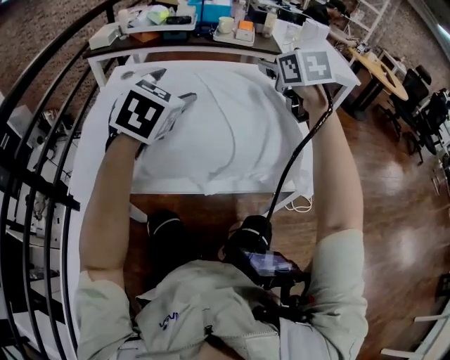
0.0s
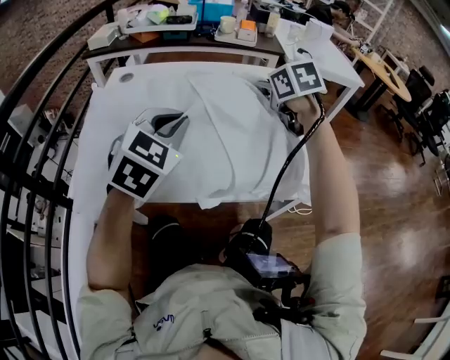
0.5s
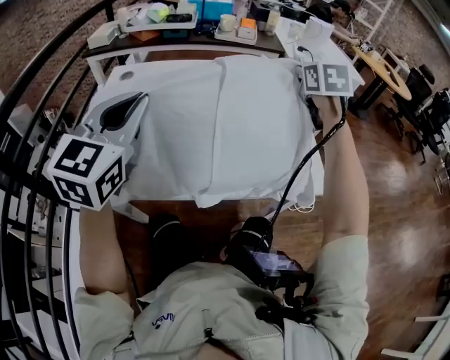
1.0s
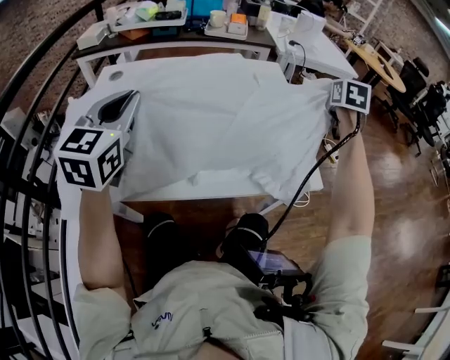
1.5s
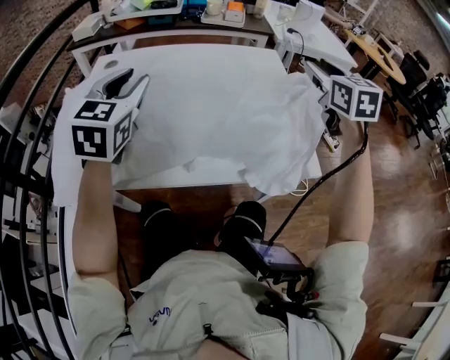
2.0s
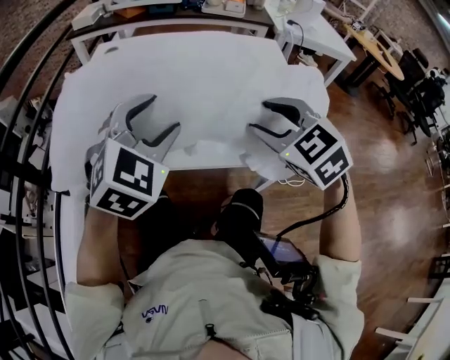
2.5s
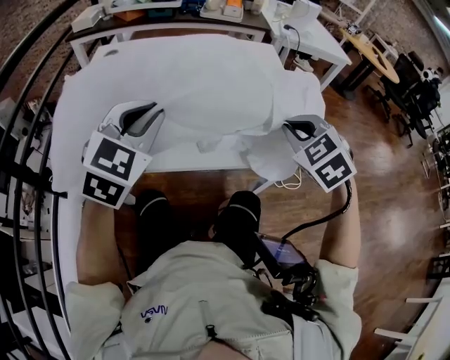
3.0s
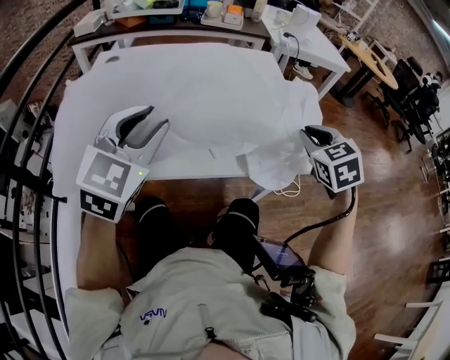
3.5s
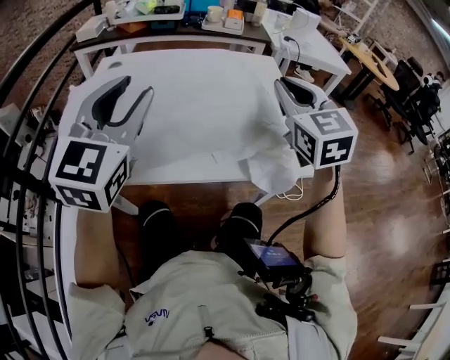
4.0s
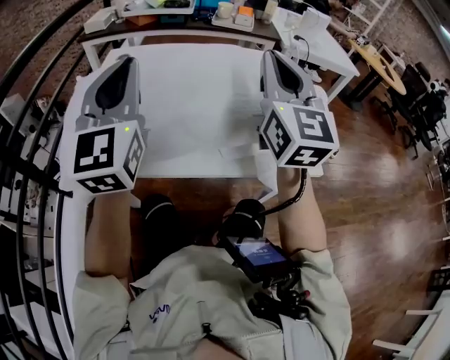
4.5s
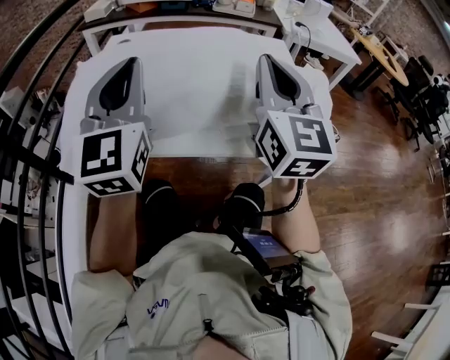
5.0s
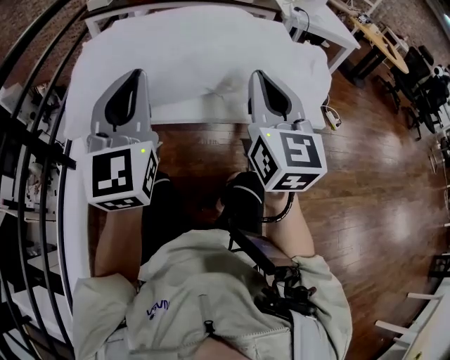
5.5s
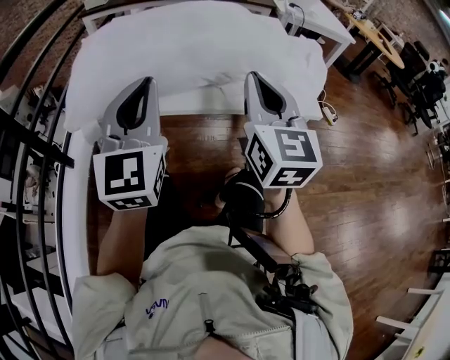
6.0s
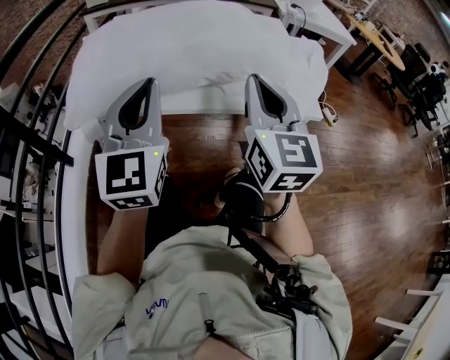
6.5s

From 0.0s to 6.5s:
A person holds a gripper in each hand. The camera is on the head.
From 0.0s to 2.0s: The right gripper shifts some 15 cm to the right, and closes, then opens again. The left gripper heads to the left, covering some 5 cm, and closes its fingers.
From 2.0s to 4.5s: The right gripper is displaced to the left and backward by some 20 cm, travels downward and back again, some 15 cm each way, changes its angle by some 30 degrees, and closes its fingers, while the left gripper is displaced backward and upward by some 10 cm, and changes its angle by approximately 30 degrees.
From 4.5s to 6.5s: The two grippers go approximately 20 cm backward and downward.

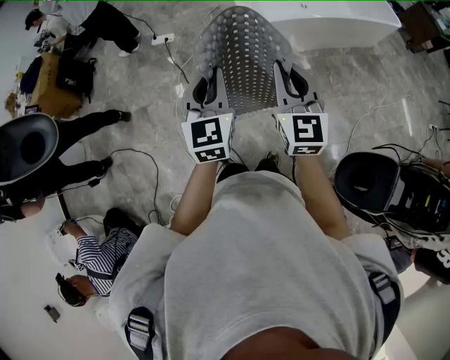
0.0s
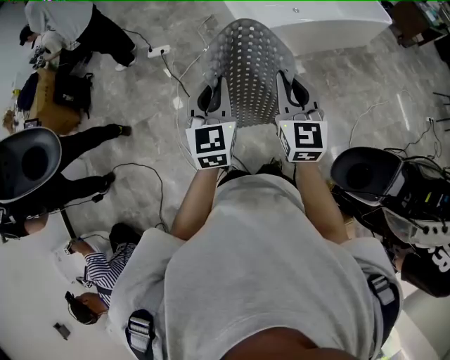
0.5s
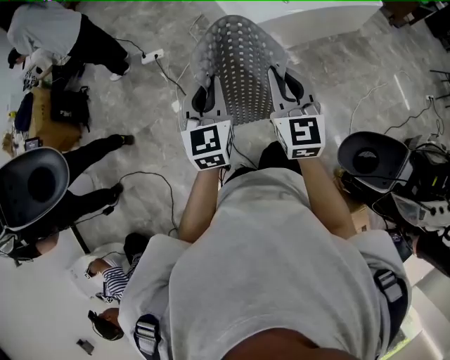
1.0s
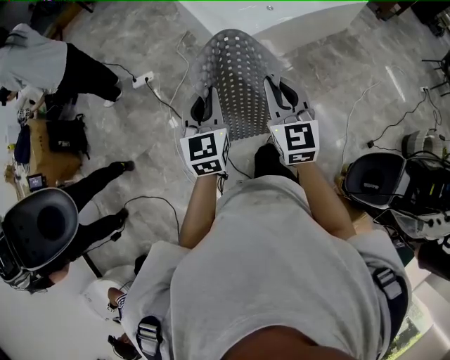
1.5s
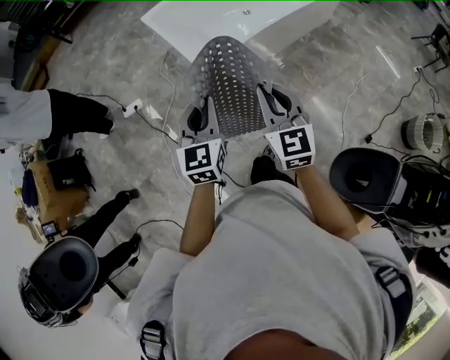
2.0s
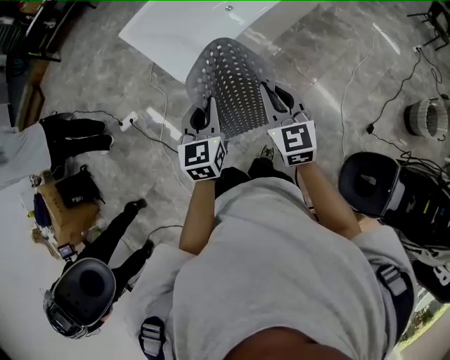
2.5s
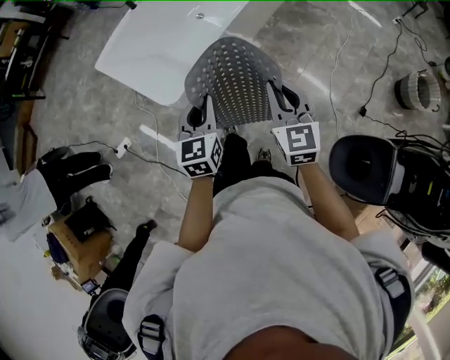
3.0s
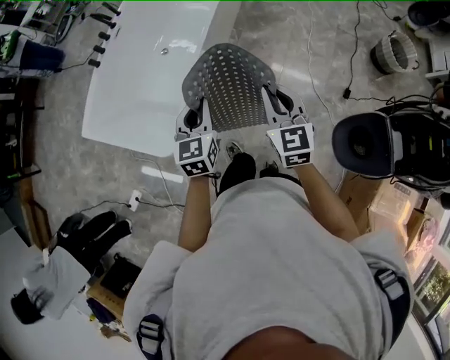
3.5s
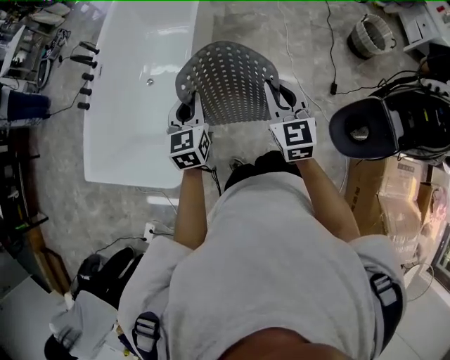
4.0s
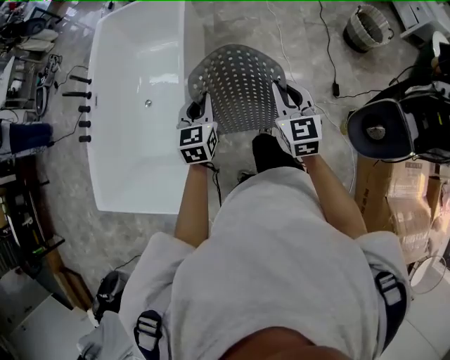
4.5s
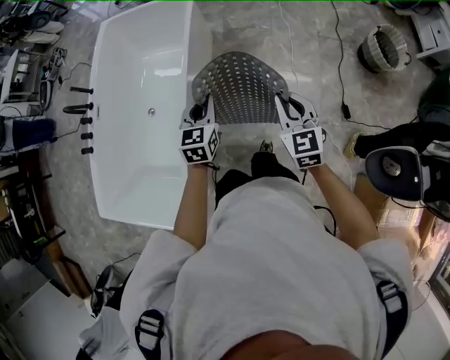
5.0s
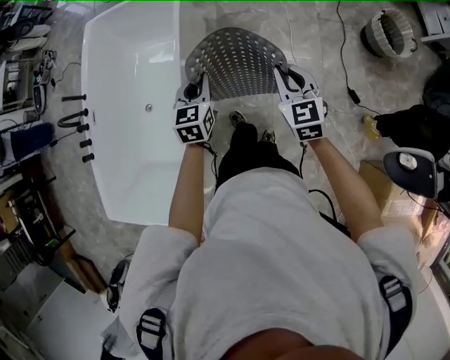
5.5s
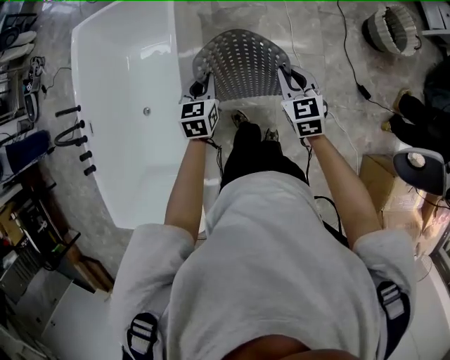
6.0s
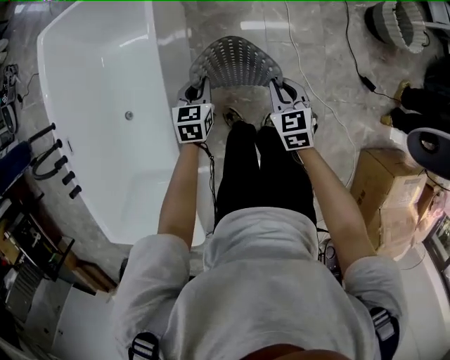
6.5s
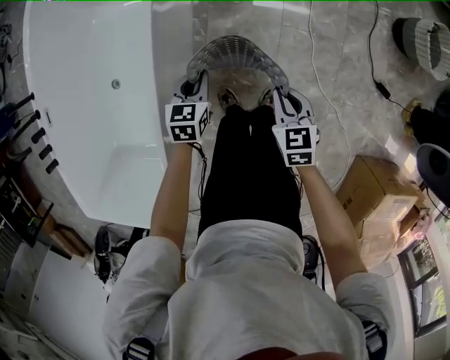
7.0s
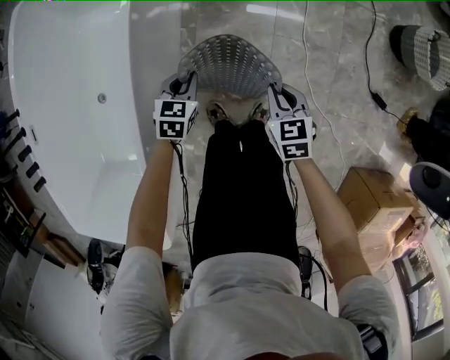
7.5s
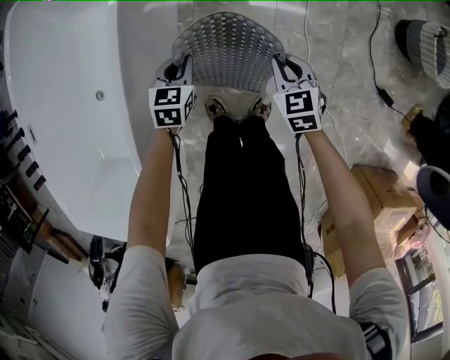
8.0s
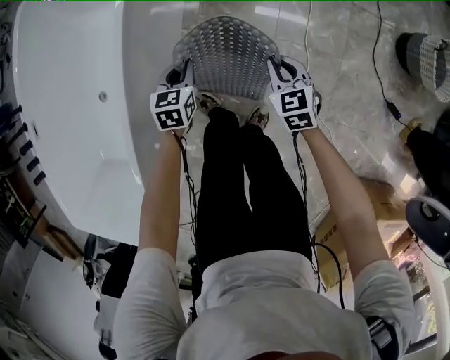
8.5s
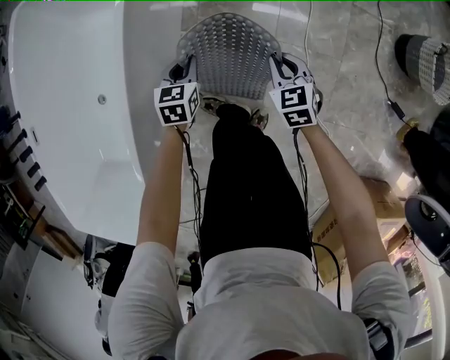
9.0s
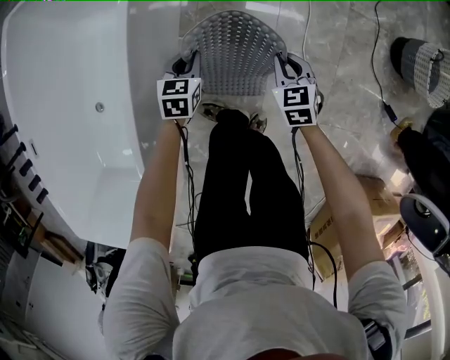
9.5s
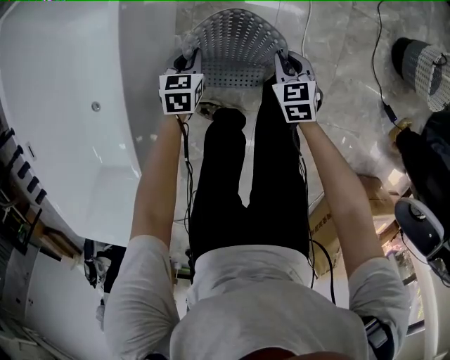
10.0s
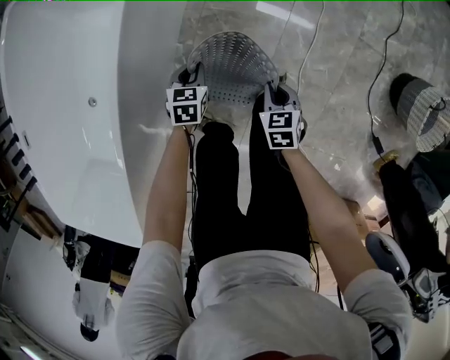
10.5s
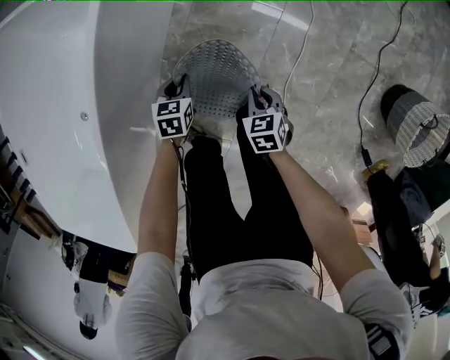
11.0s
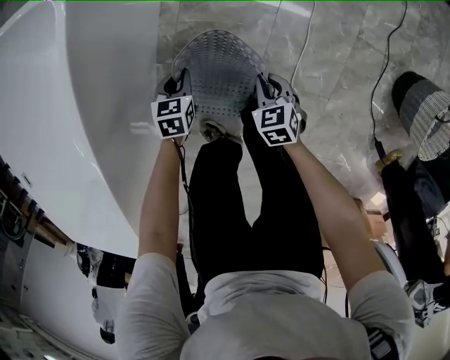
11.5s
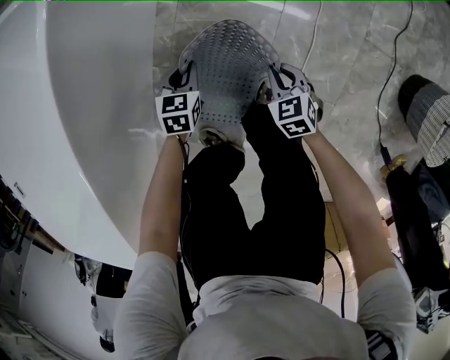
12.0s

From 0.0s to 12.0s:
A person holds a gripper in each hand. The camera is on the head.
From 0.0s to 2.0s: The grippers both shift forward and to the right by about 25 cm. The left gripper rotates roughly 20 degrees.
From 2.0s to 4.0s: The right gripper moves some 40 cm, and changes its angle by about 50 degrees, while the left gripper changes place by approximately 50 cm, and changes its angle by about 50 degrees.
From 4.0s to 6.0s: The two grippers travel together, forward, roughly 40 cm. The left gripper changes its angle by some 20 degrees; the right gripper travels downward by some 15 cm.
From 6.0s to 8.0s: Both grippers move downward, roughly 30 cm.
From 8.0s to 10.0s: The left gripper heads forward and downward, covering about 15 cm; the right gripper heads forward, covering some 15 cm.
From 10.0s to 12.0s: The left gripper travels downward, forward and to the right by roughly 20 cm. The right gripper is displaced downward and forward by some 20 cm.

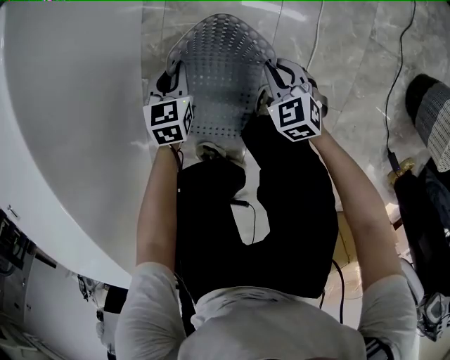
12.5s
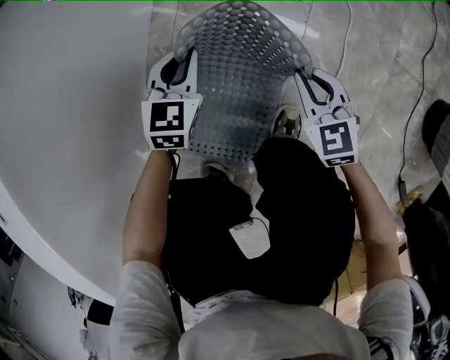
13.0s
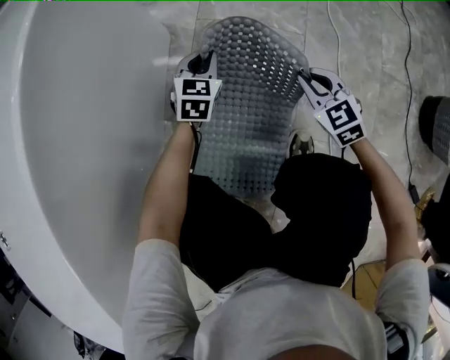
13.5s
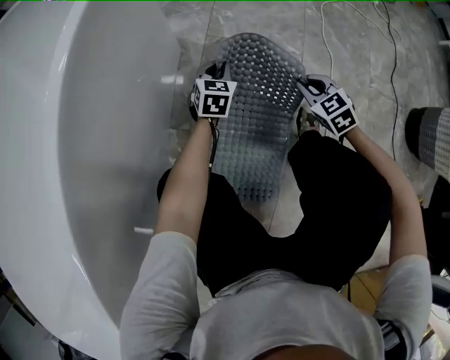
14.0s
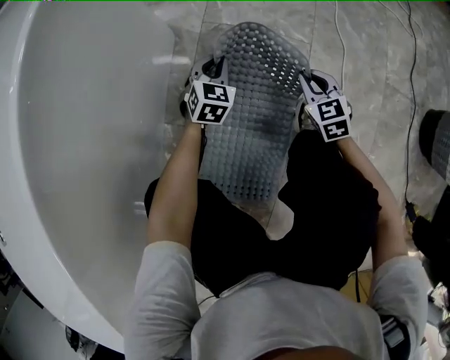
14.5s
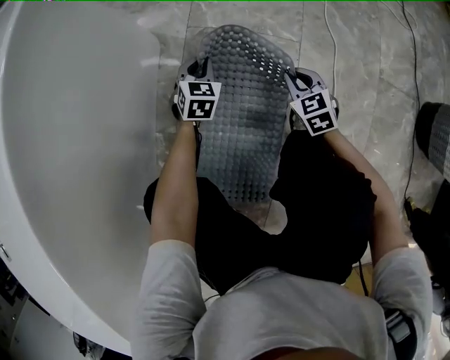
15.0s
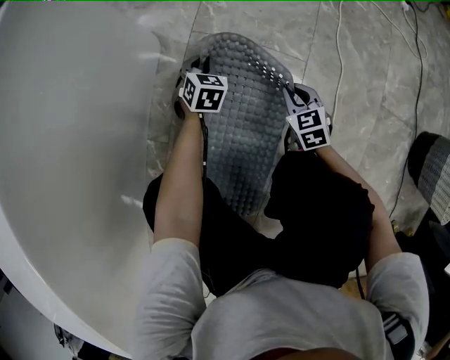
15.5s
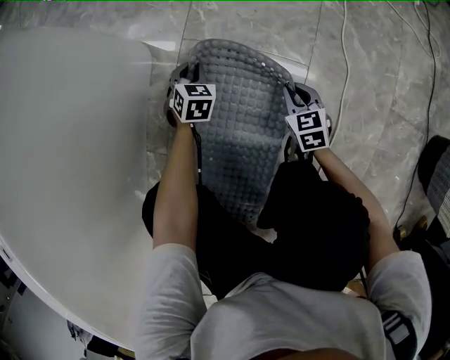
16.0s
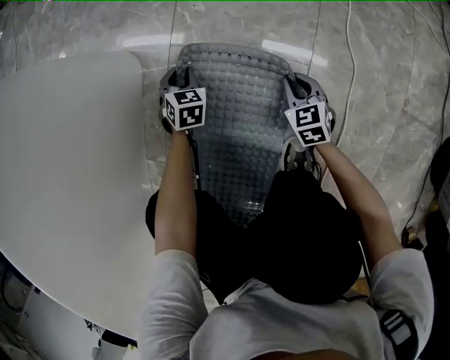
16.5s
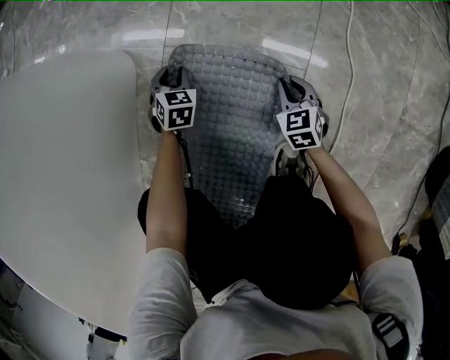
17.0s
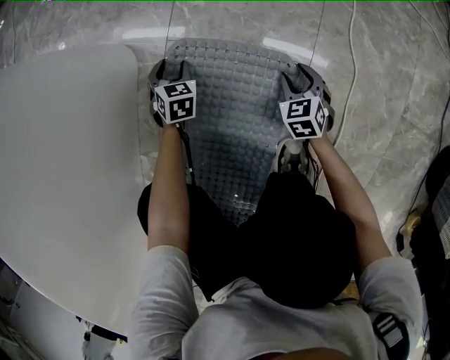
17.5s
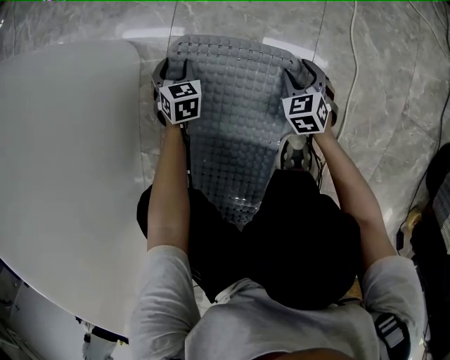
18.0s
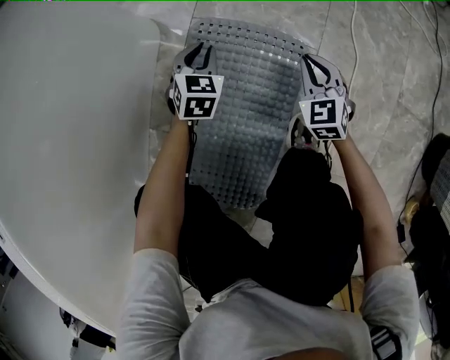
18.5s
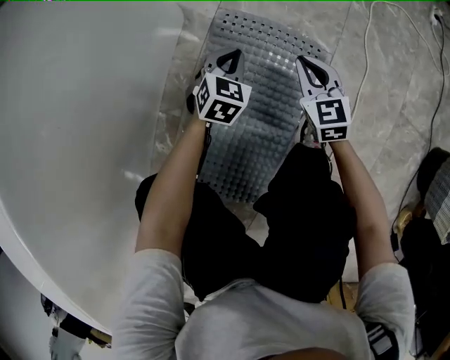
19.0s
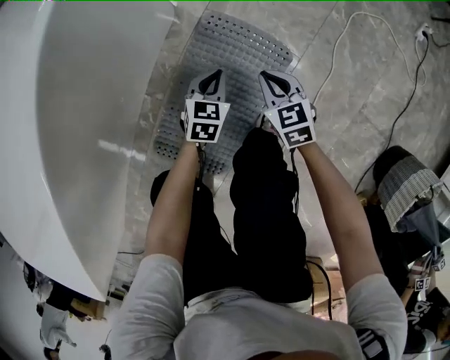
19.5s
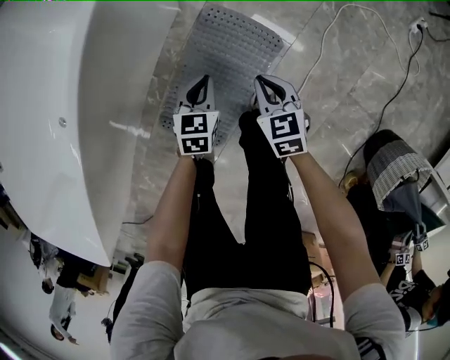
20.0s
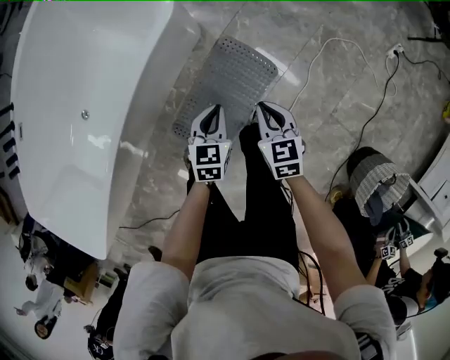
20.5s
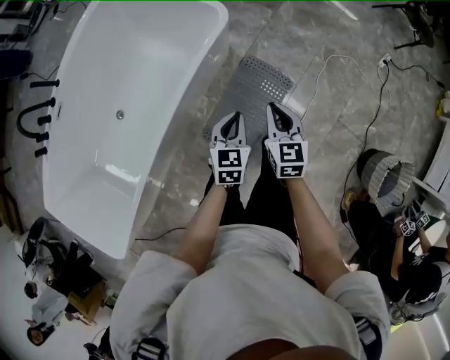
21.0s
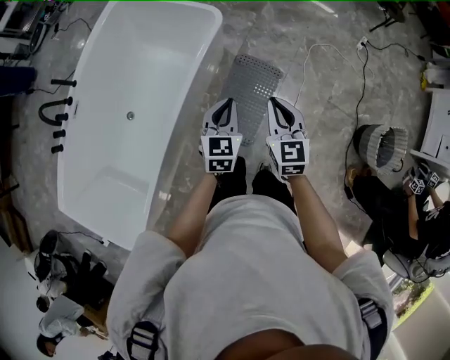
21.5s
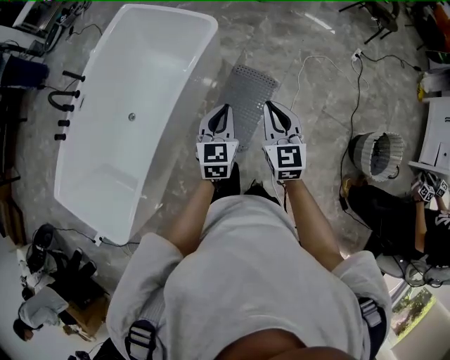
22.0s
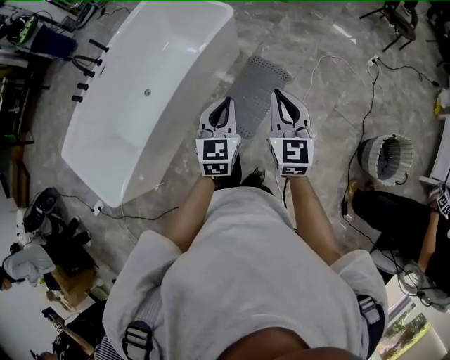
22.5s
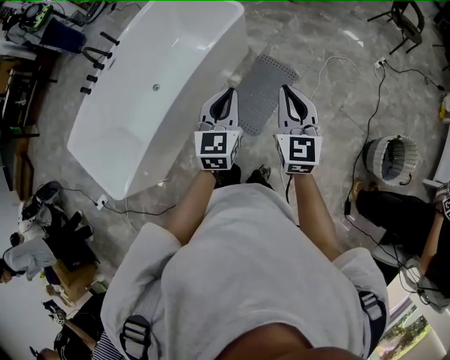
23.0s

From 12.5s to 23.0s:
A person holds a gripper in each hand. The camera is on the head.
From 12.5s to 14.5s: The right gripper goes roughly 10 cm downward and forward, while the left gripper moves forward and downward, roughly 10 cm, and rotates about 30 degrees.
From 14.5s to 16.5s: The right gripper is displaced downward, forward and to the right by roughly 20 cm. Meanwhile the left gripper heads downward and forward, covering about 15 cm, and rotates some 30 degrees.
From 16.5s to 19.0s: The left gripper is displaced upward and backward by roughly 15 cm, rotates approximately 20 degrees, and opens, then closes once more; the right gripper is displaced upward and to the left by some 15 cm, and opens and closes again.
From 19.0s to 21.0s: The grippers both shift upward by about 60 cm. The left gripper turns by approximately 40 degrees.
From 21.0s to 23.0s: The two grippers go about 40 cm upward and backward. The left gripper rotates some 20 degrees, while the right gripper swivels roughly 30 degrees.
